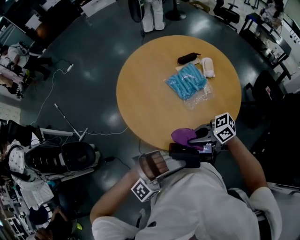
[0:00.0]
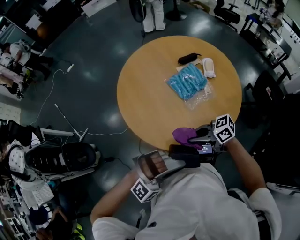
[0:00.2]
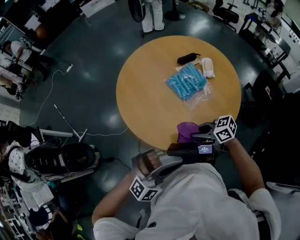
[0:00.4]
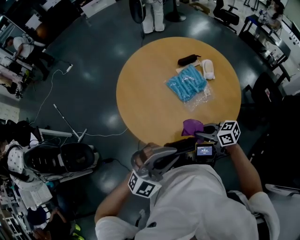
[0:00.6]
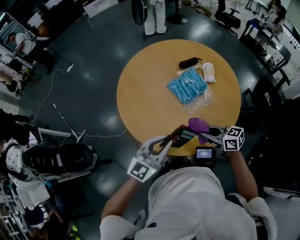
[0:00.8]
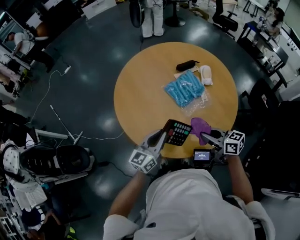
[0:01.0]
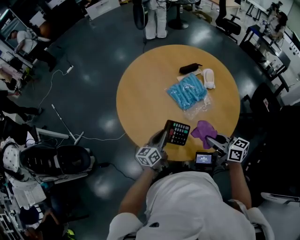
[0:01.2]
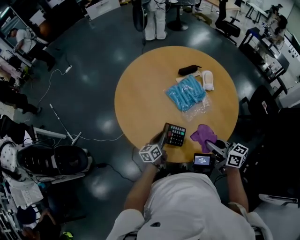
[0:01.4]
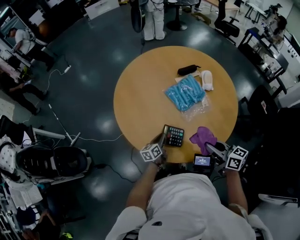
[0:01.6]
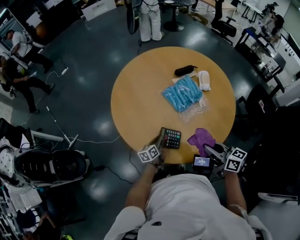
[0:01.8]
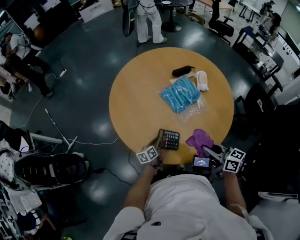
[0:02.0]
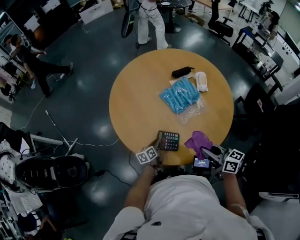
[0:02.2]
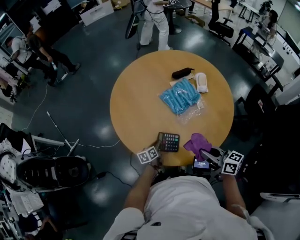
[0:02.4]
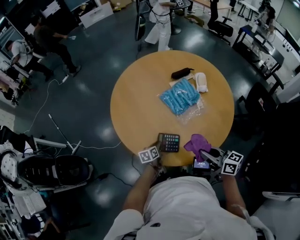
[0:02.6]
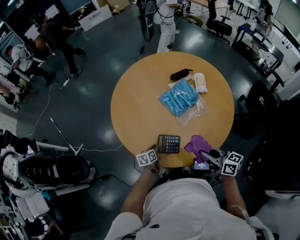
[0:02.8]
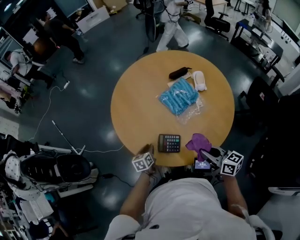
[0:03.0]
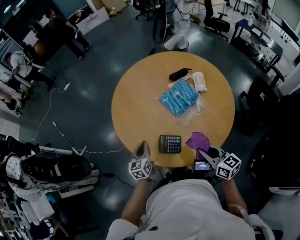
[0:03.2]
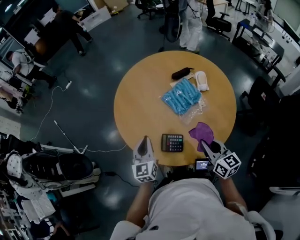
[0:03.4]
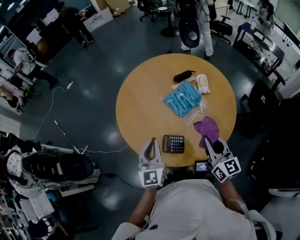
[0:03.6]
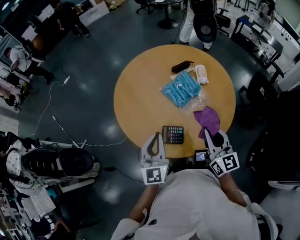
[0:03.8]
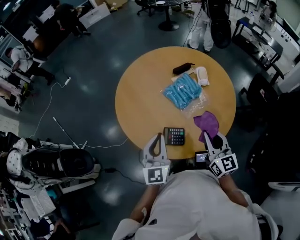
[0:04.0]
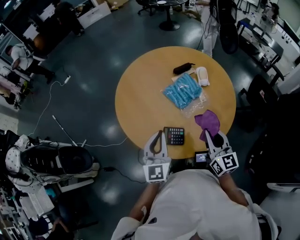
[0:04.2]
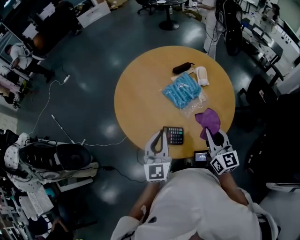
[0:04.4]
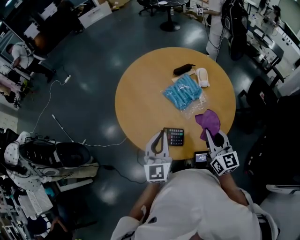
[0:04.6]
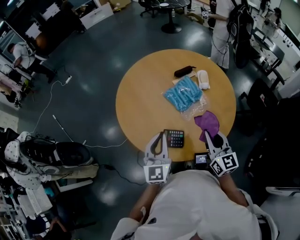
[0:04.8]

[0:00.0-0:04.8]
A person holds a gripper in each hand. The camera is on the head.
0:00.0 to 0:01.6: The right gripper moves roughly 10 cm, and changes its angle by about 50 degrees. Meanwhile the left gripper heads downward, covering roughly 35 cm, and rotates around the line of its fingers by roughly 120 degrees, counterclockwise from behind.
0:01.6 to 0:03.2: The left gripper goes some 15 cm upward and to the left, and changes its angle by some 30 degrees.
0:03.2 to 0:04.8: The left gripper shifts approximately 20 cm upward and to the right, and turns by about 30 degrees; the right gripper goes about 10 cm upward, and swivels roughly 30 degrees.

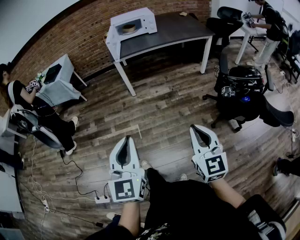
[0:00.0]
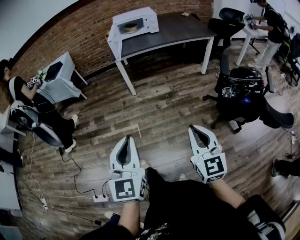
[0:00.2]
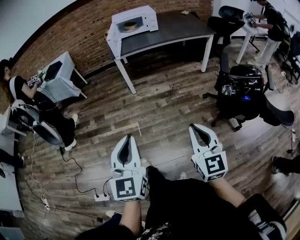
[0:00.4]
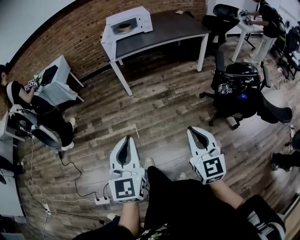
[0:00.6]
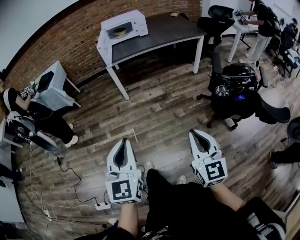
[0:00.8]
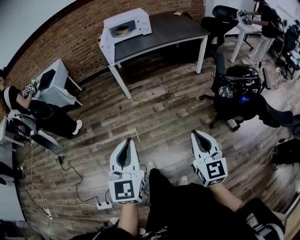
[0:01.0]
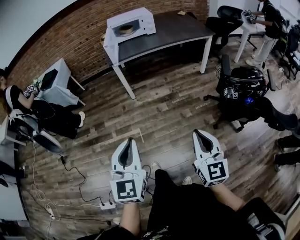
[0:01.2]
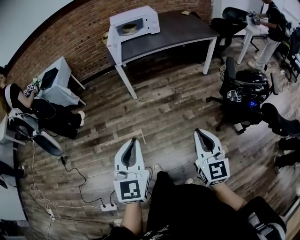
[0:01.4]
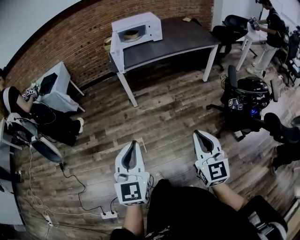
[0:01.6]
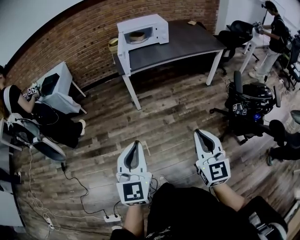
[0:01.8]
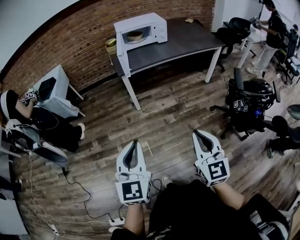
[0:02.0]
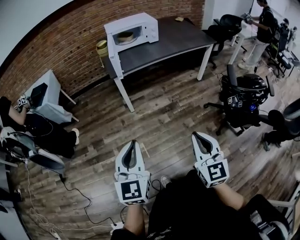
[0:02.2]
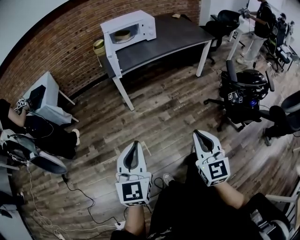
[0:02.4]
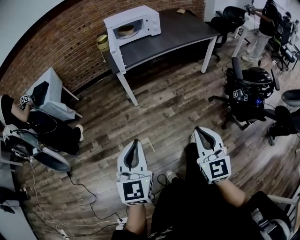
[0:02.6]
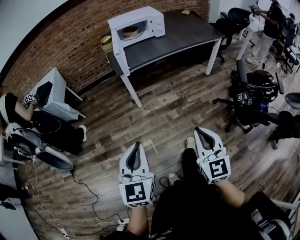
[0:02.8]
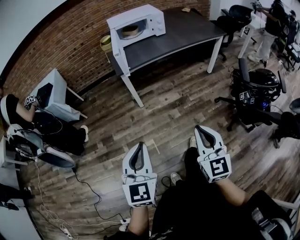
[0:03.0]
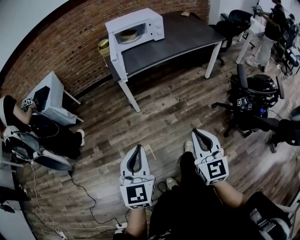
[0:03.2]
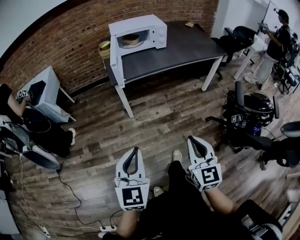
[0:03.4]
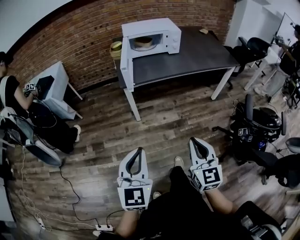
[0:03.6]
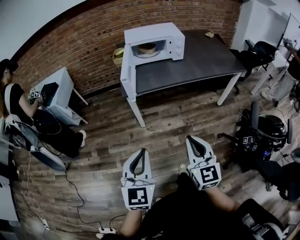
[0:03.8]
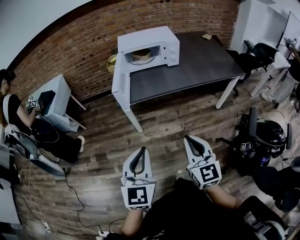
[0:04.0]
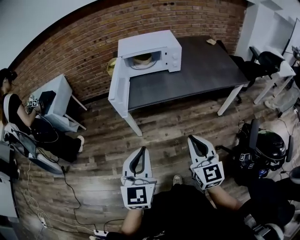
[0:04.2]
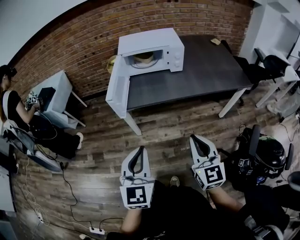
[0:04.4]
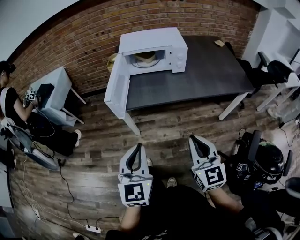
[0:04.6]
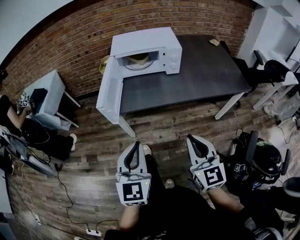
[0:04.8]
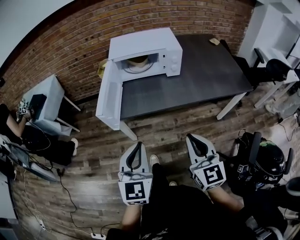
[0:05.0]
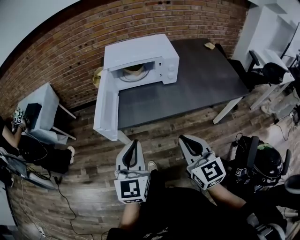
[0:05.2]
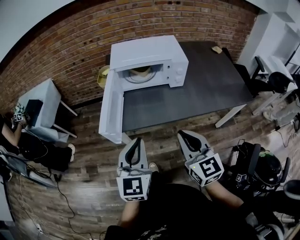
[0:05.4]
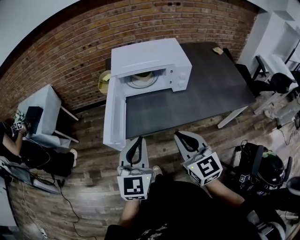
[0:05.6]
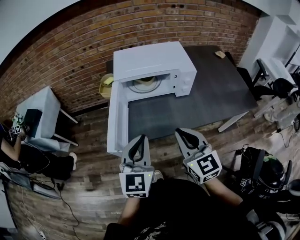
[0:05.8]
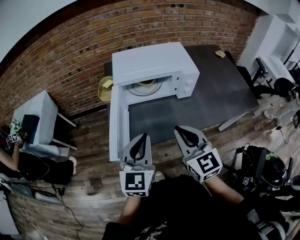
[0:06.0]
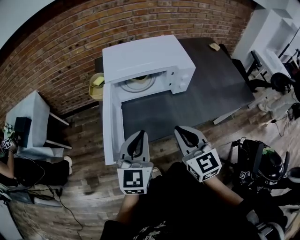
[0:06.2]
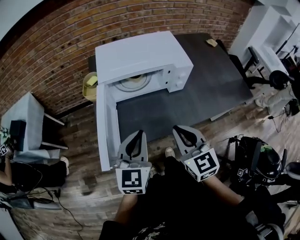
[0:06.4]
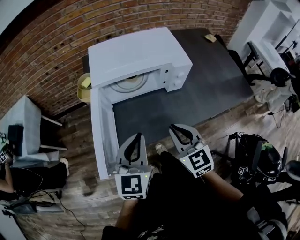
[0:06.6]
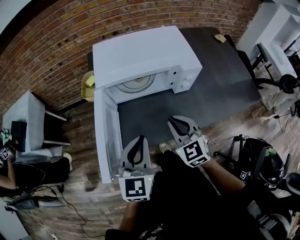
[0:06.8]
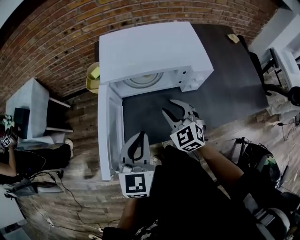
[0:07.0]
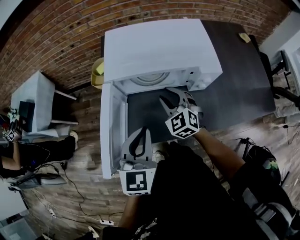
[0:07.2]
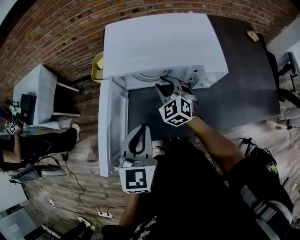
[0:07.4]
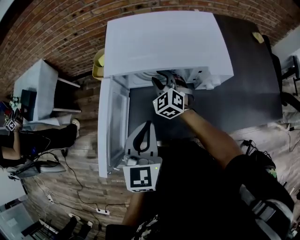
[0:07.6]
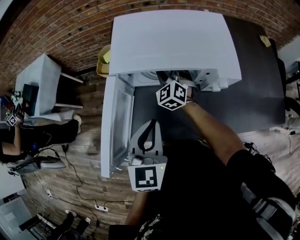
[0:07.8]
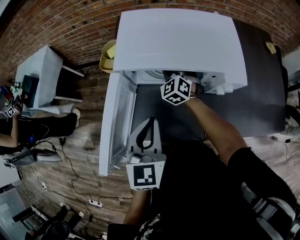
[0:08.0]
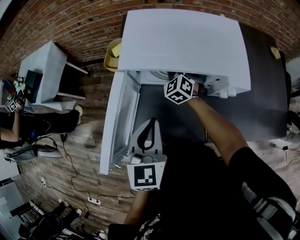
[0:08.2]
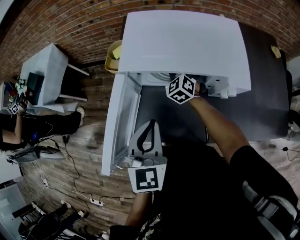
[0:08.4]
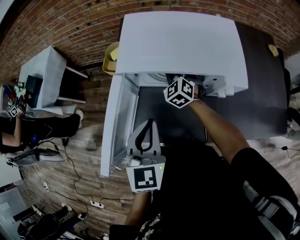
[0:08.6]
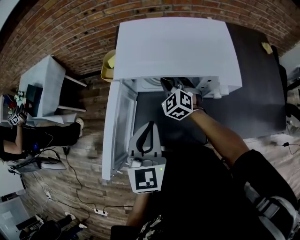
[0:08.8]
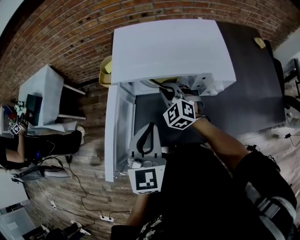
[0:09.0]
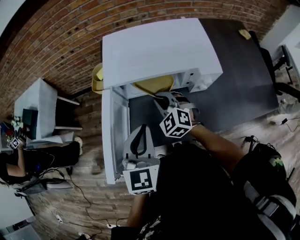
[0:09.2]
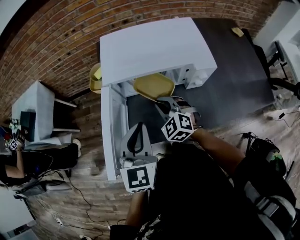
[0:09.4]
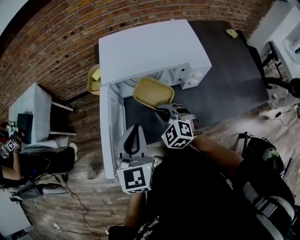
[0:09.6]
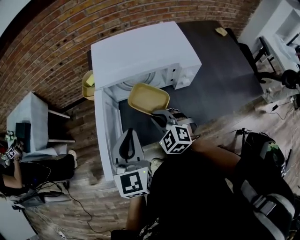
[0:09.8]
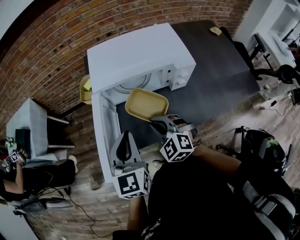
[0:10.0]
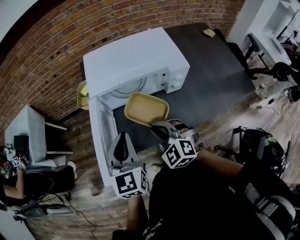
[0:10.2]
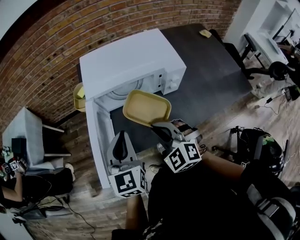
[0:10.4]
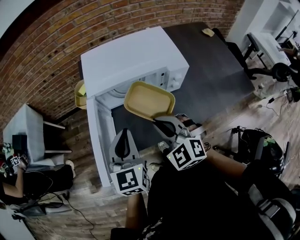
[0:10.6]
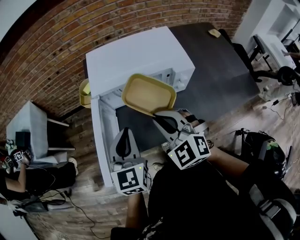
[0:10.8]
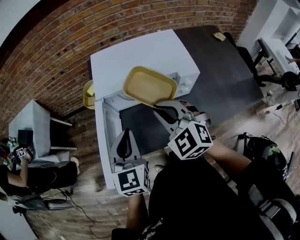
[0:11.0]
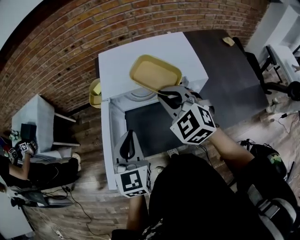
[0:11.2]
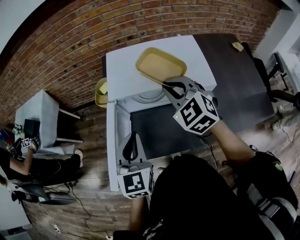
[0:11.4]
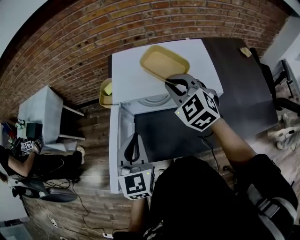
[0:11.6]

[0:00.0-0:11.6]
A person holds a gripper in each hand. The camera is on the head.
0:00.0 to 0:01.4: Both grippers travel together forward, approximately 10 cm.
0:01.4 to 0:02.8: The right gripper moves to the left and forward, roughly 20 cm; the left gripper moves forward and to the left, about 20 cm.
0:02.8 to 0:04.4: The two grippers go approximately 35 cm forward and to the right.
0:04.4 to 0:05.8: The grippers both shift forward by roughly 30 cm.
0:05.8 to 0:07.2: The left gripper is displaced forward by approximately 15 cm, while the right gripper goes roughly 30 cm forward and downward, turns by about 30 degrees, and opens up.
0:07.2 to 0:08.8: The right gripper heads forward, covering approximately 10 cm, and closes its fingers.
0:08.8 to 0:10.2: The left gripper moves about 5 cm. The right gripper is displaced backward by roughly 25 cm.
0:10.2 to 0:11.6: The left gripper travels forward by roughly 5 cm. The right gripper heads forward and upward, covering some 25 cm.

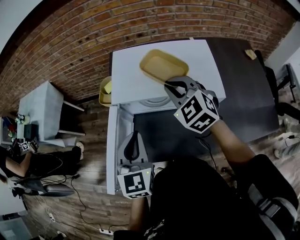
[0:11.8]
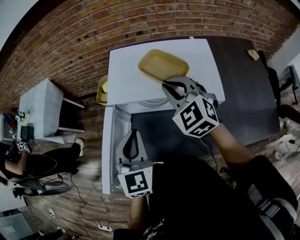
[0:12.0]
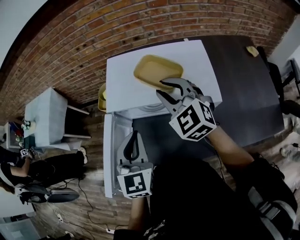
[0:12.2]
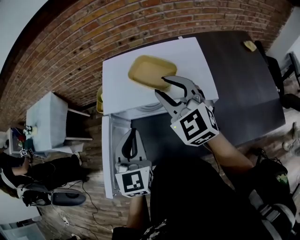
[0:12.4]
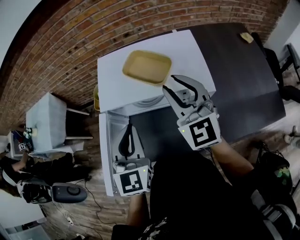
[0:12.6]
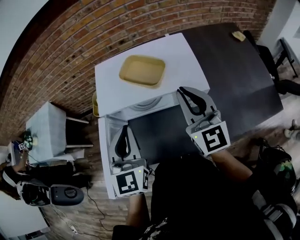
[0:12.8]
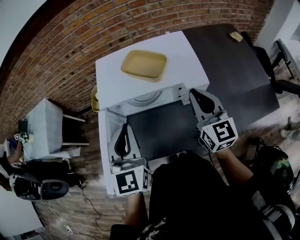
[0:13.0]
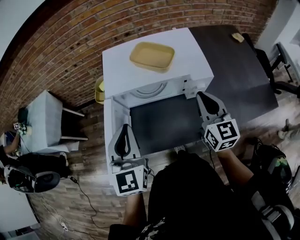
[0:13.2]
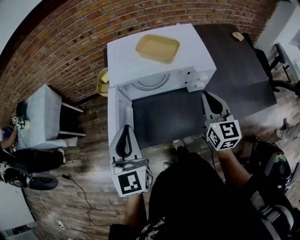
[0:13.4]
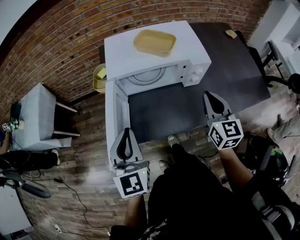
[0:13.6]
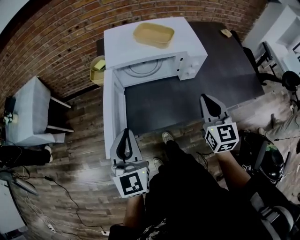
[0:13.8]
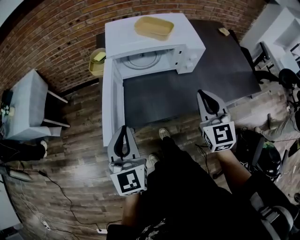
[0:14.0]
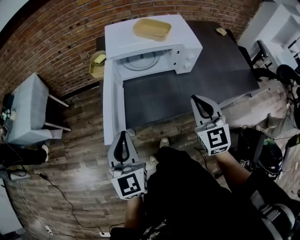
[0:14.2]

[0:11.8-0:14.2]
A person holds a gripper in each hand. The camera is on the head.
0:11.8 to 0:13.0: The left gripper changes place by approximately 5 cm; the right gripper moves to the right and backward, approximately 15 cm, rotates about 50 degrees, and opens, then closes again.
0:13.0 to 0:14.2: Both grippers travel together backward and to the left, some 25 cm. The right gripper swivels approximately 20 degrees.

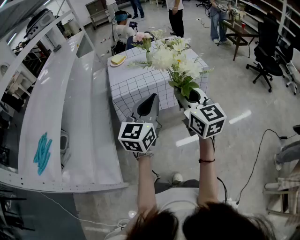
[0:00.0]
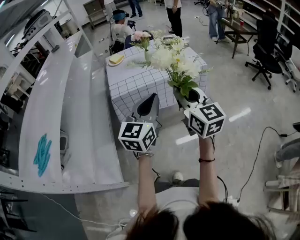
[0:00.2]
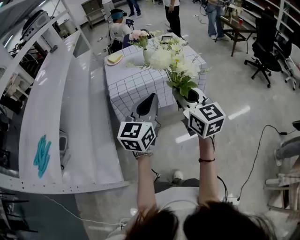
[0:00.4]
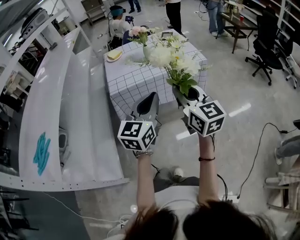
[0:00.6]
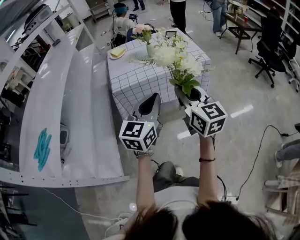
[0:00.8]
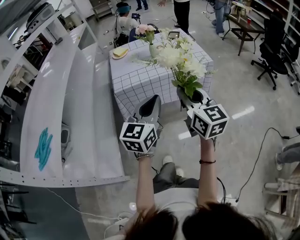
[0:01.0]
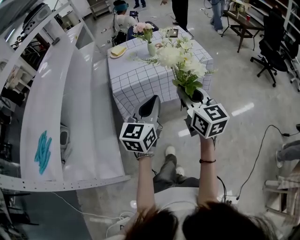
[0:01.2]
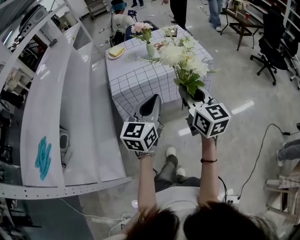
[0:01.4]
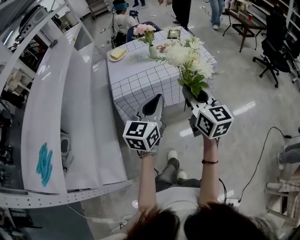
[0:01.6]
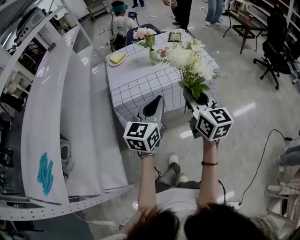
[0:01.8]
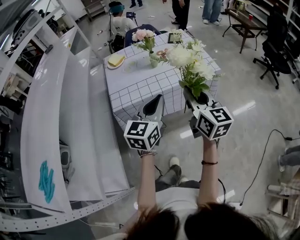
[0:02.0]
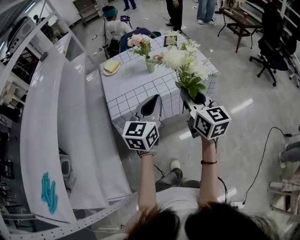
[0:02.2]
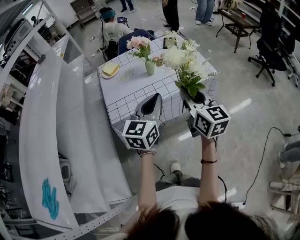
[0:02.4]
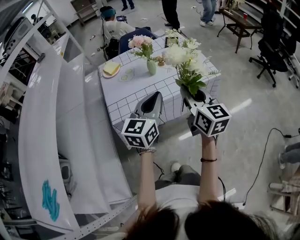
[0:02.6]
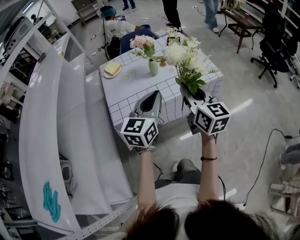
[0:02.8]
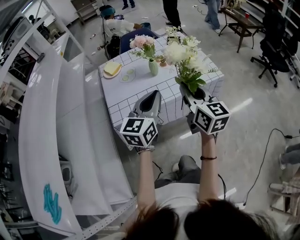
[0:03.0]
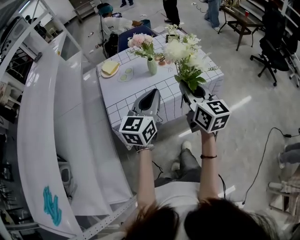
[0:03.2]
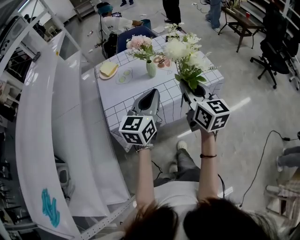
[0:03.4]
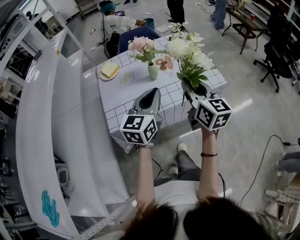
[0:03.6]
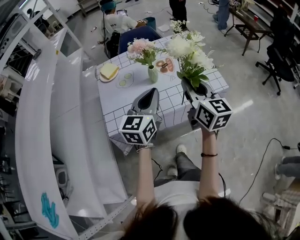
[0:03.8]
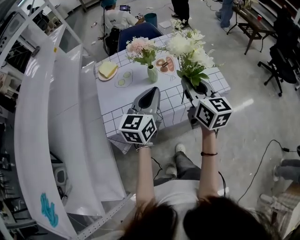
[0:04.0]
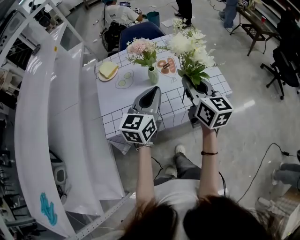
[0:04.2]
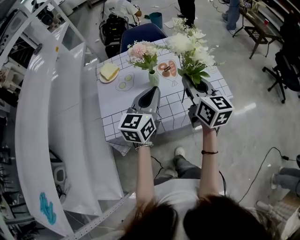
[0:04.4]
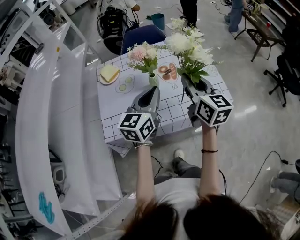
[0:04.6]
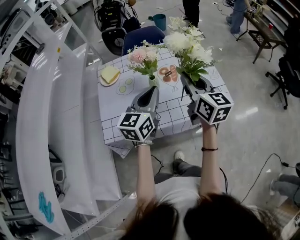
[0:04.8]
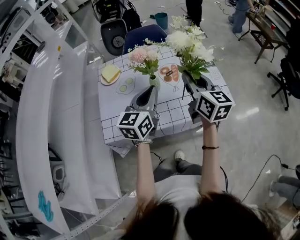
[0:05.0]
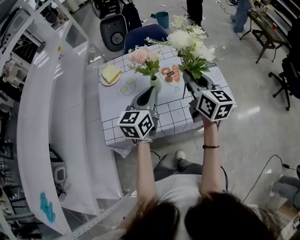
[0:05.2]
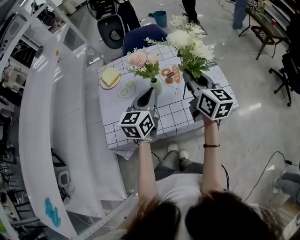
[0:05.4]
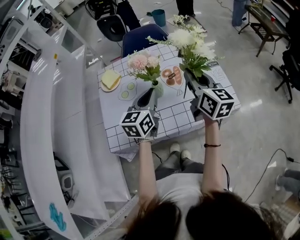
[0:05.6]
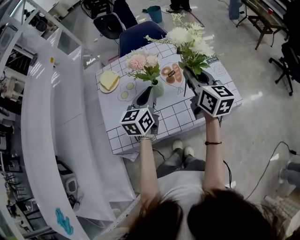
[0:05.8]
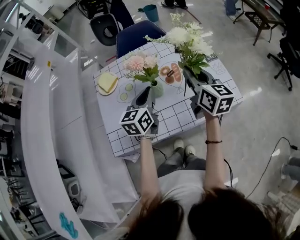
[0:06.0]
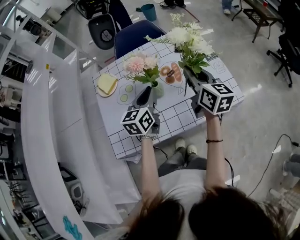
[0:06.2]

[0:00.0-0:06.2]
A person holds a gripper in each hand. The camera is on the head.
0:00.0 to 0:01.6: The grippers both shift forward by some 10 cm.
0:01.6 to 0:03.2: The grippers both shift forward by about 20 cm.
0:03.2 to 0:04.6: The two grippers go some 20 cm forward.
0:04.6 to 0:06.2: Both grippers travel together forward and downward, some 15 cm.
